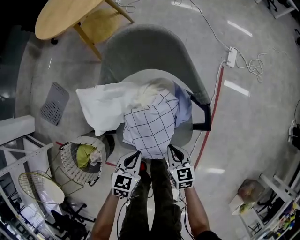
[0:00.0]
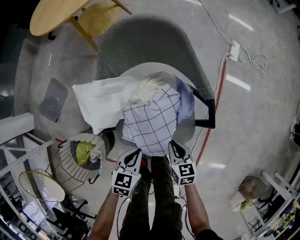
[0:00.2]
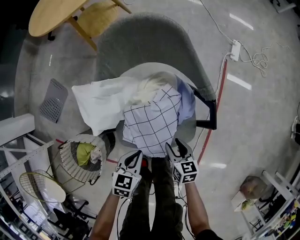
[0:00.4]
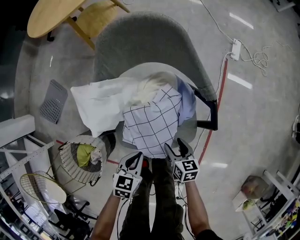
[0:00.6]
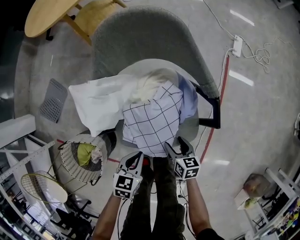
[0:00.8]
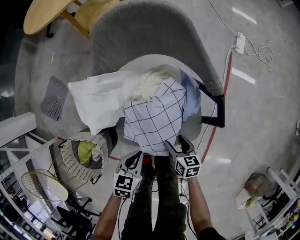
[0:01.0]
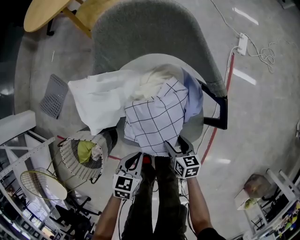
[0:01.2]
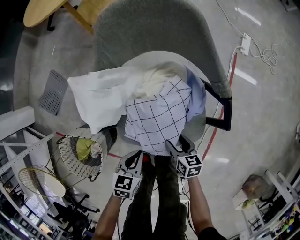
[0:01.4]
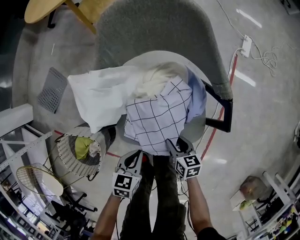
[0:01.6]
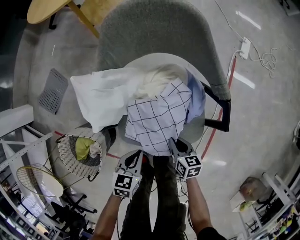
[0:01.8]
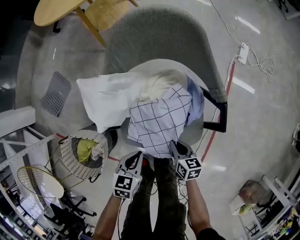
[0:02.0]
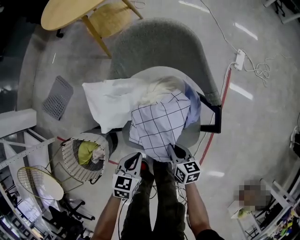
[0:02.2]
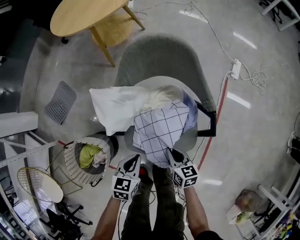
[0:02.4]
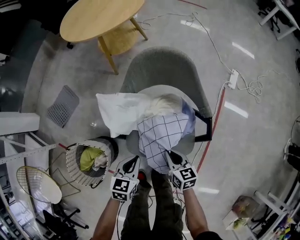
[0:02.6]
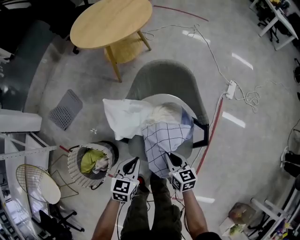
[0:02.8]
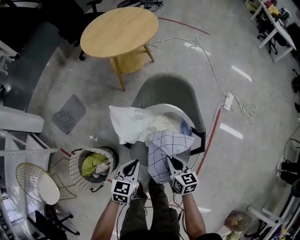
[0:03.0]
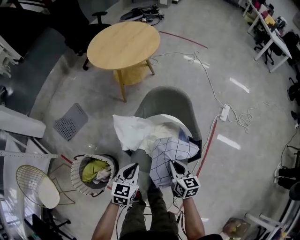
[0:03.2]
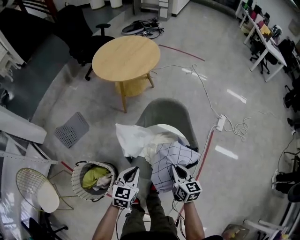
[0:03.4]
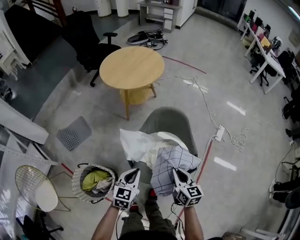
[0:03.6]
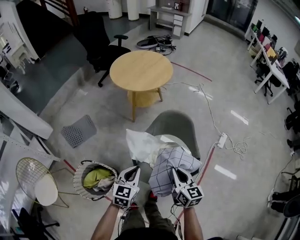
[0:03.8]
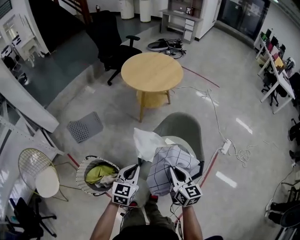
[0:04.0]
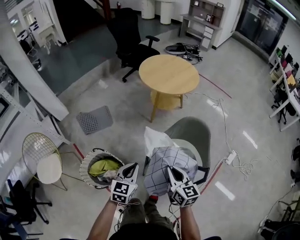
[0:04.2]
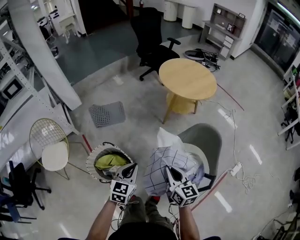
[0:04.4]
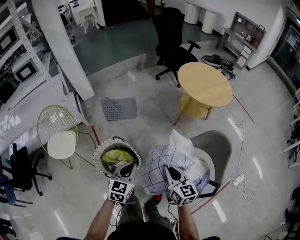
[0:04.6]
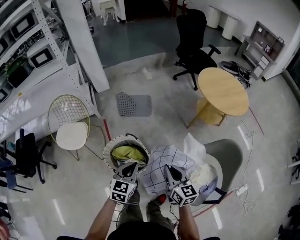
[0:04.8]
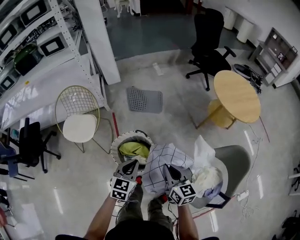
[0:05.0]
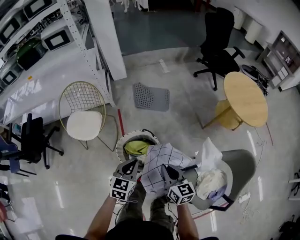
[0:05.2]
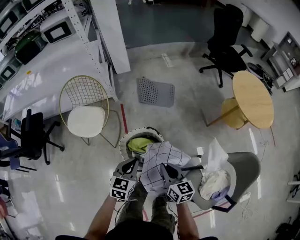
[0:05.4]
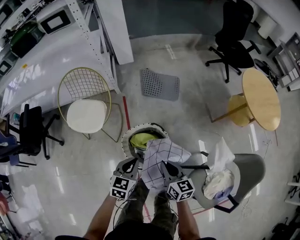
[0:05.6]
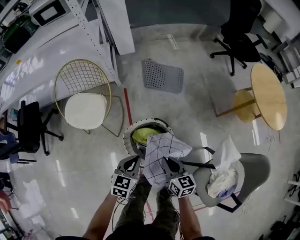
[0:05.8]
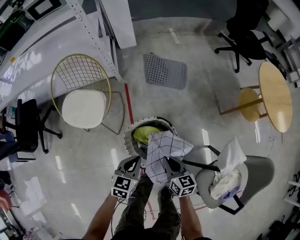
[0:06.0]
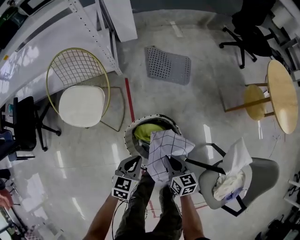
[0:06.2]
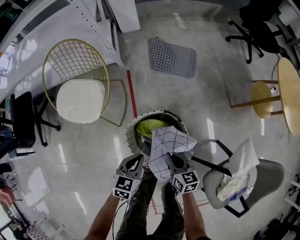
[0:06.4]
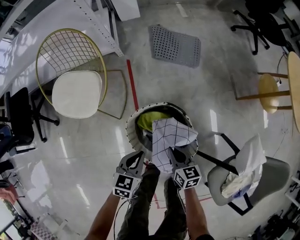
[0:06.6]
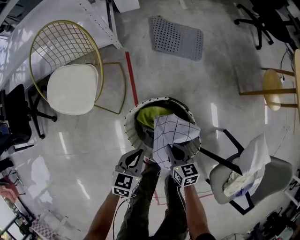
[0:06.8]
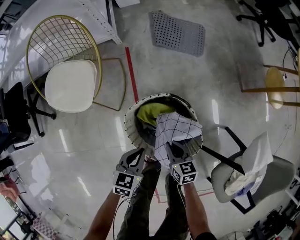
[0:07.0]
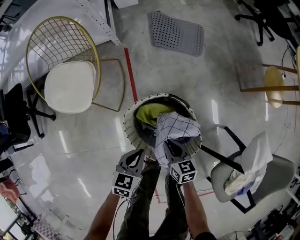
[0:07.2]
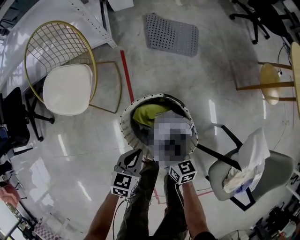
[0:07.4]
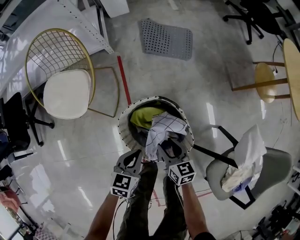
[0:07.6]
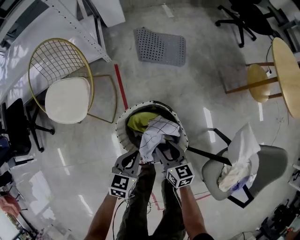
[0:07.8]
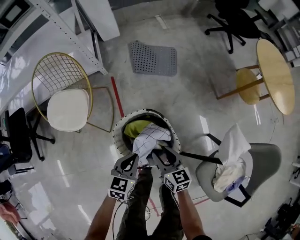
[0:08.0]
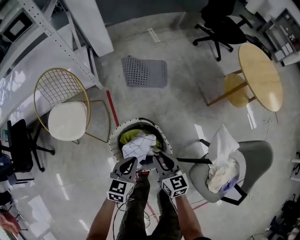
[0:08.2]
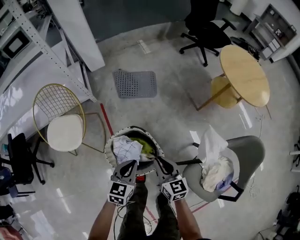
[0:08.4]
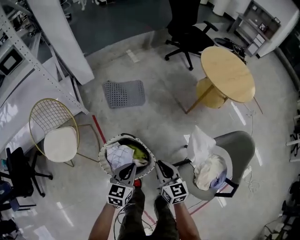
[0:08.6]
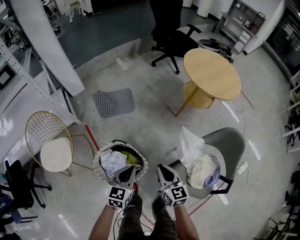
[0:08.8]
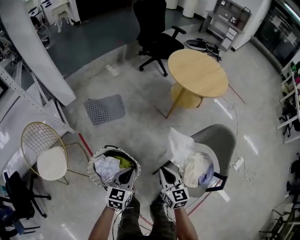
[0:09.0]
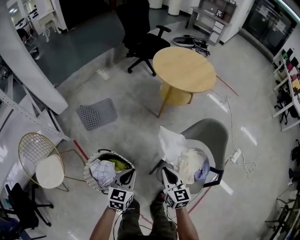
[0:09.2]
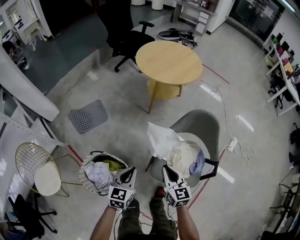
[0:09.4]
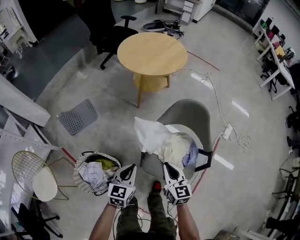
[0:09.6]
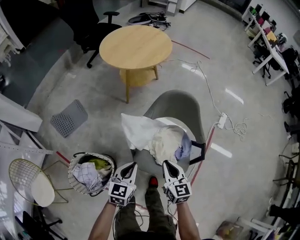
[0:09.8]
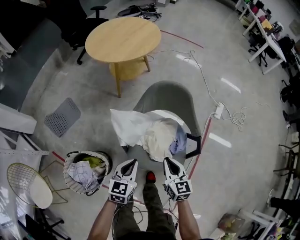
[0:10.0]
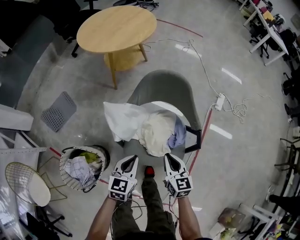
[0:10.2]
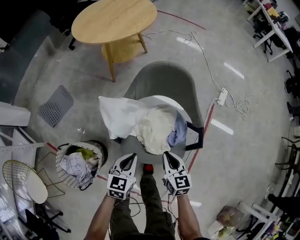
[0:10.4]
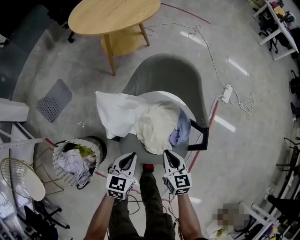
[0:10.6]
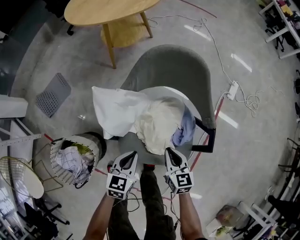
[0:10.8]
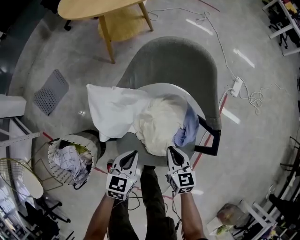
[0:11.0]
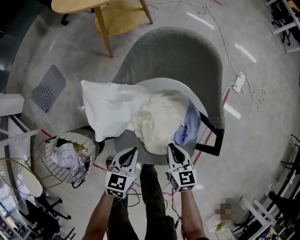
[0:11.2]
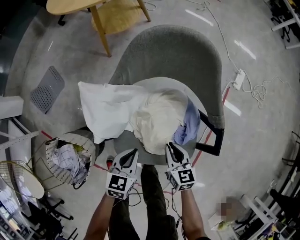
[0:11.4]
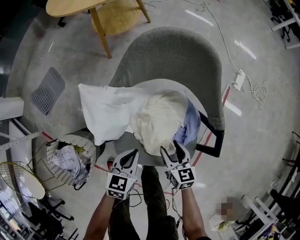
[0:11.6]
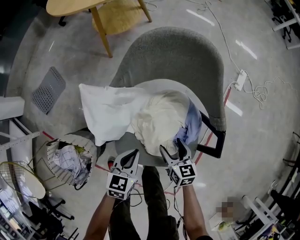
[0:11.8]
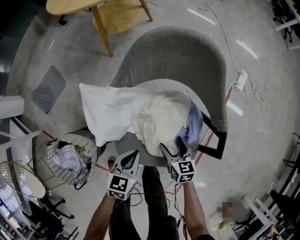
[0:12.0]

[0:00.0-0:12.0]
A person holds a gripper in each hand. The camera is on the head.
0:00.0 to 0:01.6: The grippers both shift downward by approximately 10 cm. The right gripper opens its fingers.
0:01.6 to 0:03.0: Both grippers move upward, some 25 cm. The right gripper closes.
0:03.0 to 0:04.4: The left gripper ends up about 25 cm from where it was, and turns by roughly 30 degrees. Meanwhile the right gripper heads upward, covering approximately 25 cm, and turns by some 30 degrees.
0:04.4 to 0:06.0: The left gripper moves roughly 40 cm, and swivels some 30 degrees, while the right gripper moves some 50 cm, and changes its angle by approximately 40 degrees.
0:06.0 to 0:07.6: The two grippers go some 15 cm downward. The right gripper opens.
0:07.6 to 0:09.0: The left gripper shifts by some 35 cm, and turns by some 30 degrees. Meanwhile the right gripper changes place by about 40 cm, rotates about 40 degrees, and closes up.
0:09.0 to 0:10.4: The right gripper moves some 35 cm, and rotates approximately 30 degrees; the left gripper changes place by about 35 cm, and changes its angle by about 30 degrees.
0:10.4 to 0:12.0: The grippers both shift downward by approximately 20 cm. The right gripper opens.

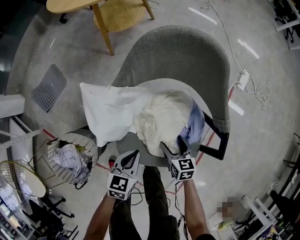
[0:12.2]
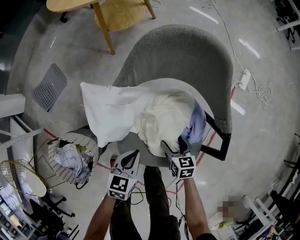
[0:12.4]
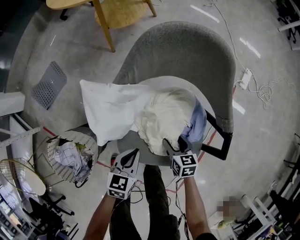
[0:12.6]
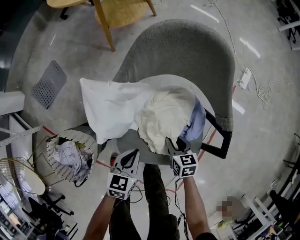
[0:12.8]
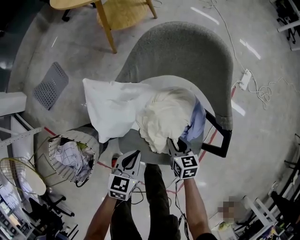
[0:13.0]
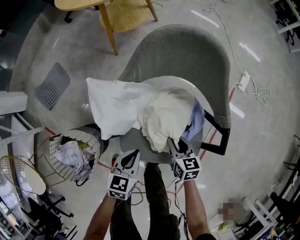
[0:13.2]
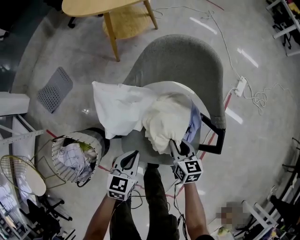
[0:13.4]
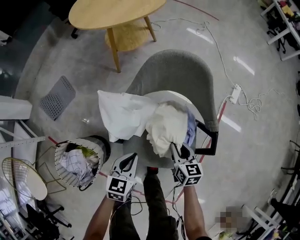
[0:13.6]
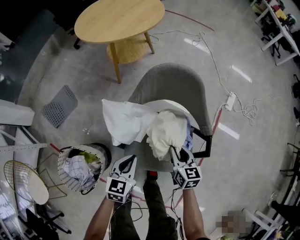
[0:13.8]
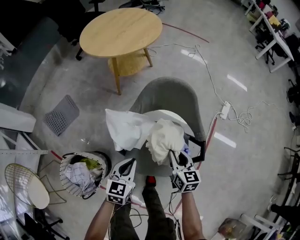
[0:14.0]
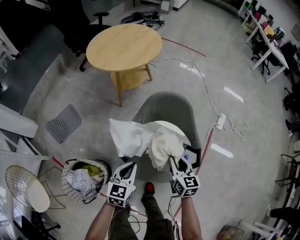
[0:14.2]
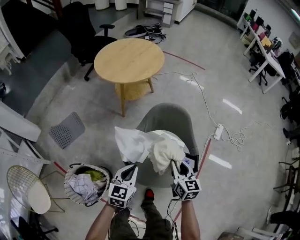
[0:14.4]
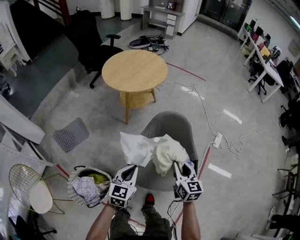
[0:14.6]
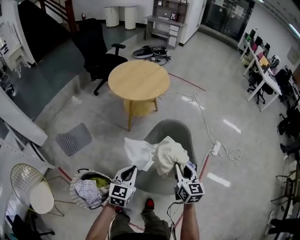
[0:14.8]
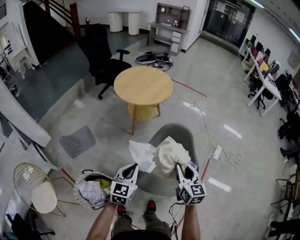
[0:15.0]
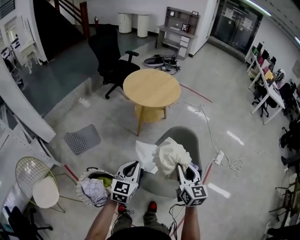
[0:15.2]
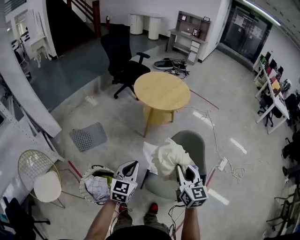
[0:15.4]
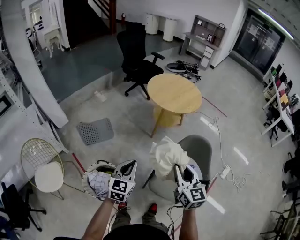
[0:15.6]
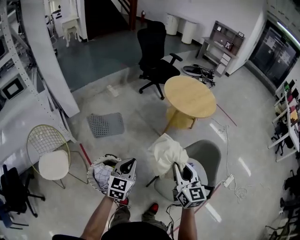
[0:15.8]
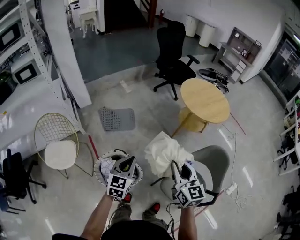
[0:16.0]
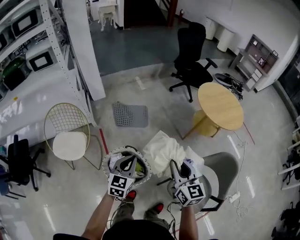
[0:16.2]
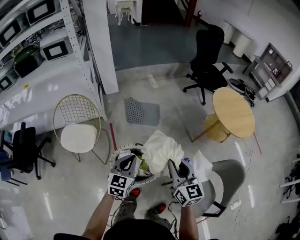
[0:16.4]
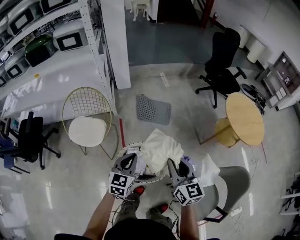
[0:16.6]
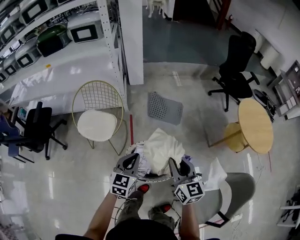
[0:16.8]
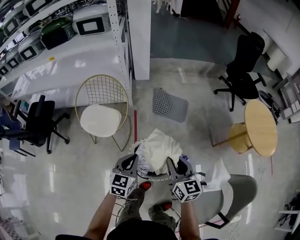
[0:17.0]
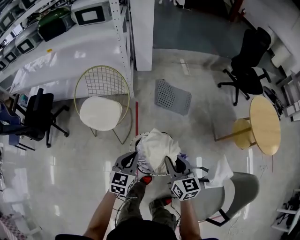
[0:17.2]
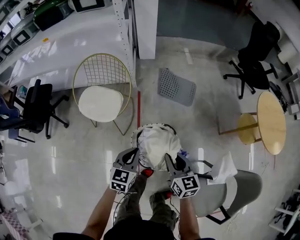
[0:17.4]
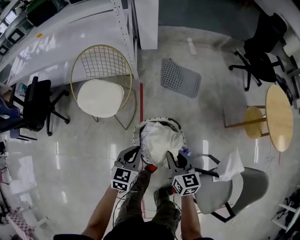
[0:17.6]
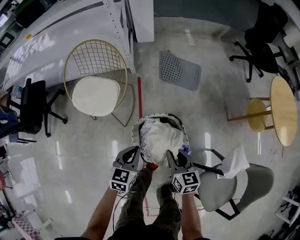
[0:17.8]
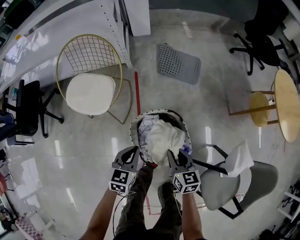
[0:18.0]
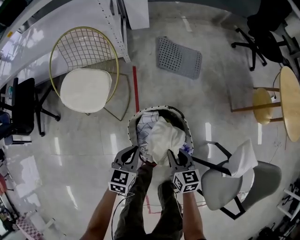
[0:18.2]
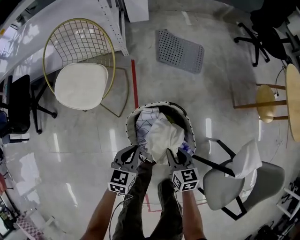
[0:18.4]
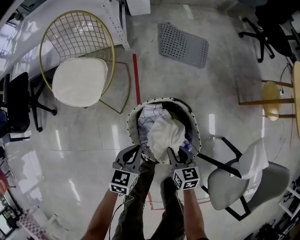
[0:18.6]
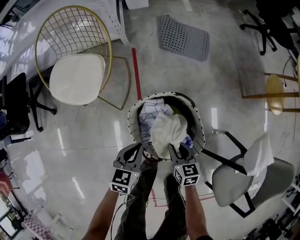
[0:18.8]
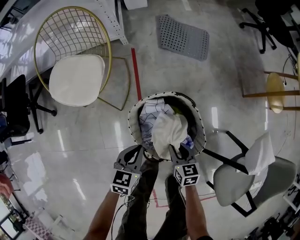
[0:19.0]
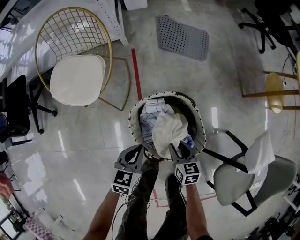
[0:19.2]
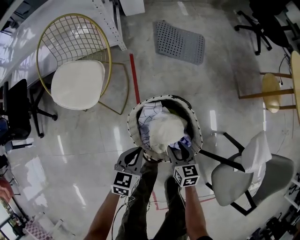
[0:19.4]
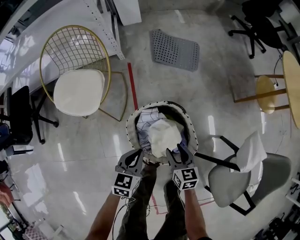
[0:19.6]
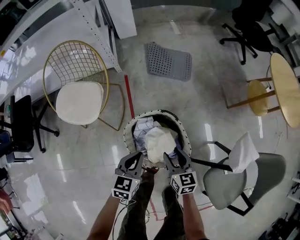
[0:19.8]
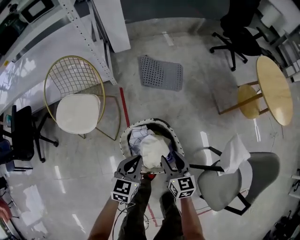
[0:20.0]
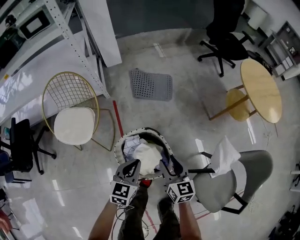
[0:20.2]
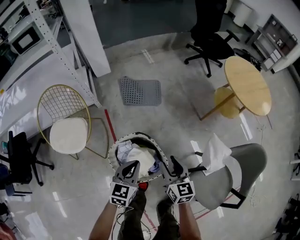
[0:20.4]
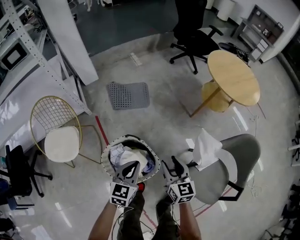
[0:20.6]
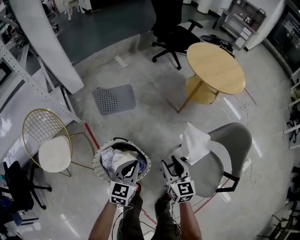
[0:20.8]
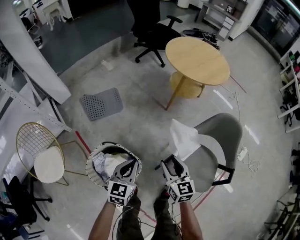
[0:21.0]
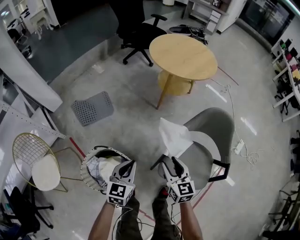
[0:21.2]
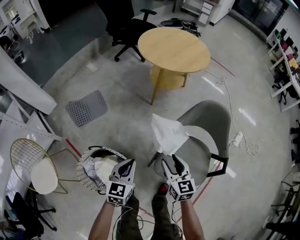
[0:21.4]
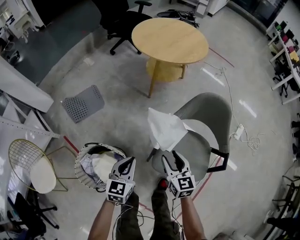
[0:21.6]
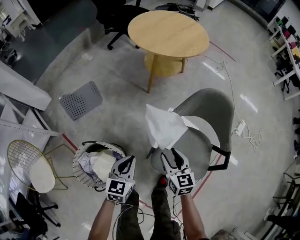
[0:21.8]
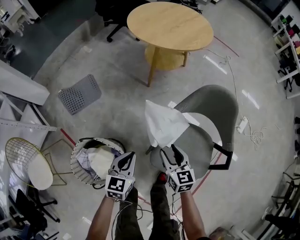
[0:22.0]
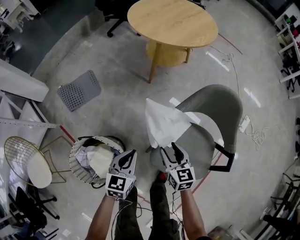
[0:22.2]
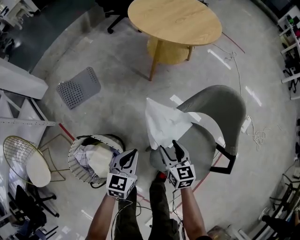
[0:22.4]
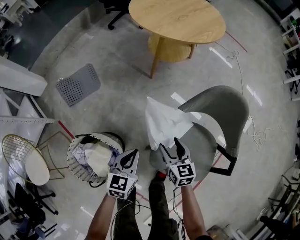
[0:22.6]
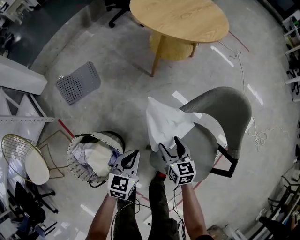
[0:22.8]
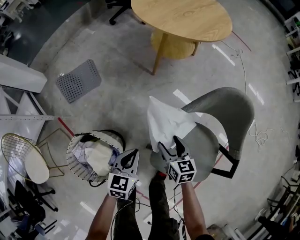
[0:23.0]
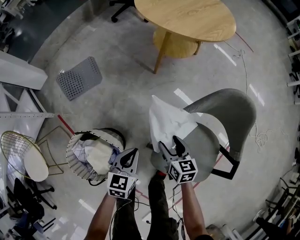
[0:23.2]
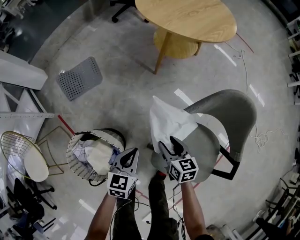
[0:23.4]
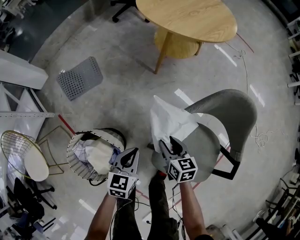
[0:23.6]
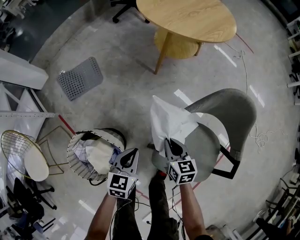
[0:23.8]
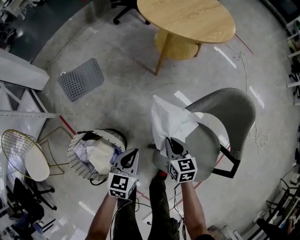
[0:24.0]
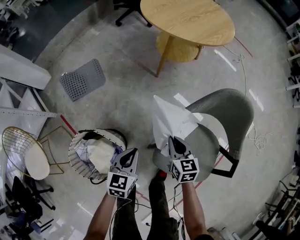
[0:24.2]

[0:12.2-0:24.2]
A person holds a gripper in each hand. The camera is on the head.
0:12.2 to 0:13.8: The grippers both shift upward by roughly 15 cm. The right gripper closes.
0:13.8 to 0:15.2: Both grippers move upward, about 35 cm. The right gripper changes its angle by some 20 degrees. Meanwhile the left gripper rotates about 20 degrees.
0:15.2 to 0:16.6: The two grippers travel together, approximately 40 cm. The right gripper rotates roughly 50 degrees, while the left gripper changes its angle by some 50 degrees.
0:16.6 to 0:18.2: The two grippers go approximately 35 cm downward. The left gripper swivels roughly 20 degrees; the right gripper changes its angle by roughly 30 degrees.
0:18.2 to 0:19.8: The left gripper reaches approximately 10 cm downward, then returns. Meanwhile the right gripper reaches approximately 15 cm downward, then returns.
0:19.8 to 0:21.2: The right gripper shifts by some 40 cm, and swivels some 40 degrees. Meanwhile the left gripper shifts by some 35 cm, and rotates roughly 40 degrees.
0:21.2 to 0:22.6: The right gripper shifts about 20 cm downward, forward and to the right. Meanwhile the left gripper travels downward, to the right and forward by roughly 15 cm.
0:22.6 to 0:24.2: The right gripper closes.
